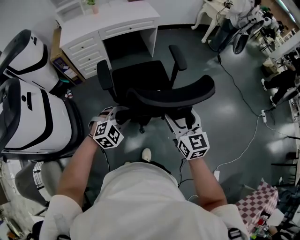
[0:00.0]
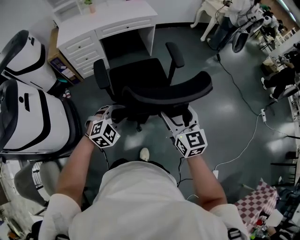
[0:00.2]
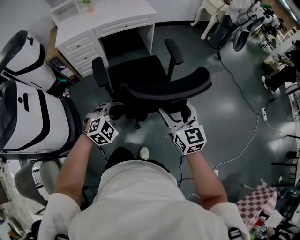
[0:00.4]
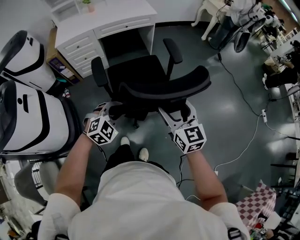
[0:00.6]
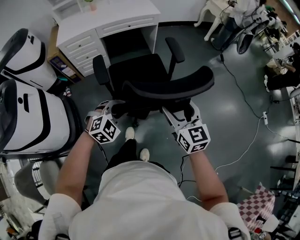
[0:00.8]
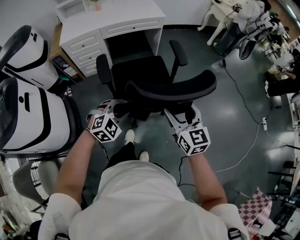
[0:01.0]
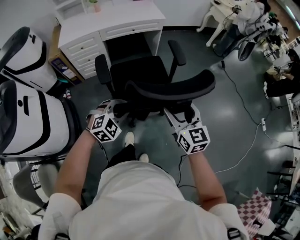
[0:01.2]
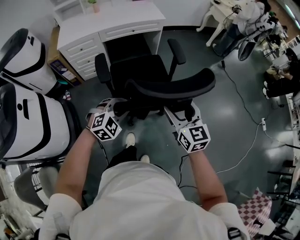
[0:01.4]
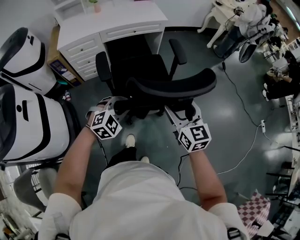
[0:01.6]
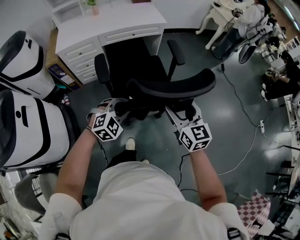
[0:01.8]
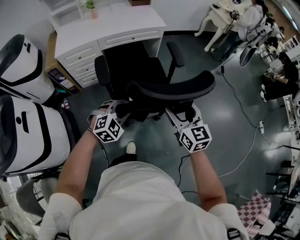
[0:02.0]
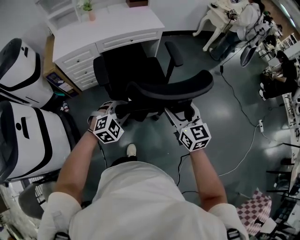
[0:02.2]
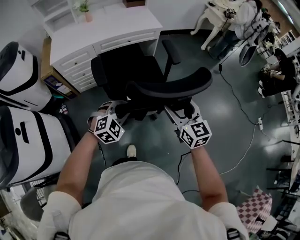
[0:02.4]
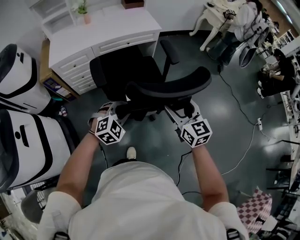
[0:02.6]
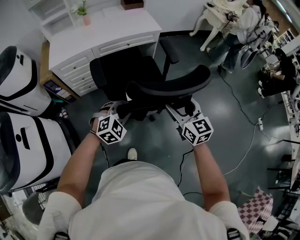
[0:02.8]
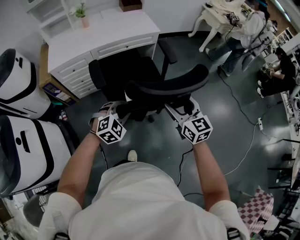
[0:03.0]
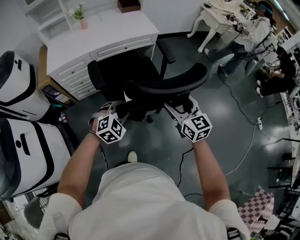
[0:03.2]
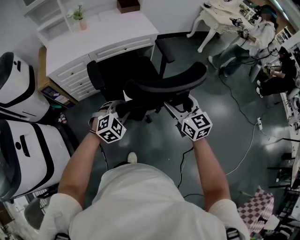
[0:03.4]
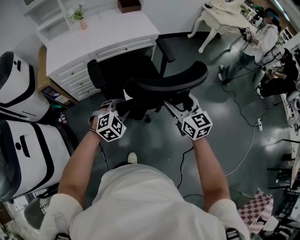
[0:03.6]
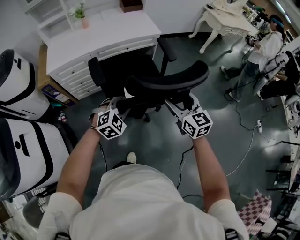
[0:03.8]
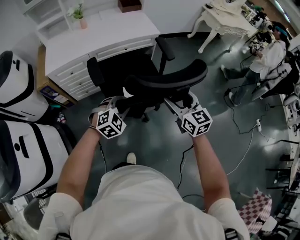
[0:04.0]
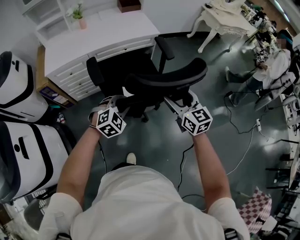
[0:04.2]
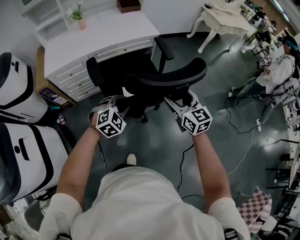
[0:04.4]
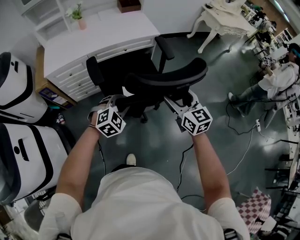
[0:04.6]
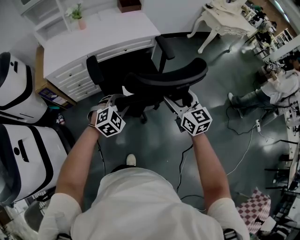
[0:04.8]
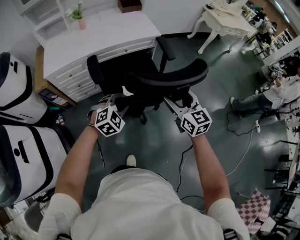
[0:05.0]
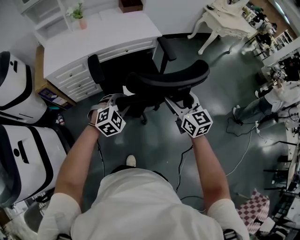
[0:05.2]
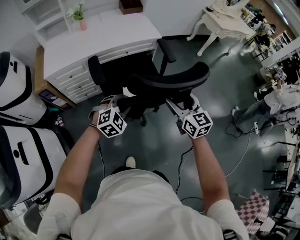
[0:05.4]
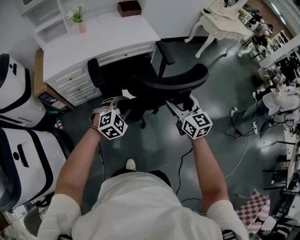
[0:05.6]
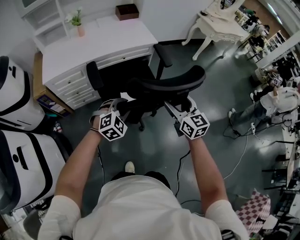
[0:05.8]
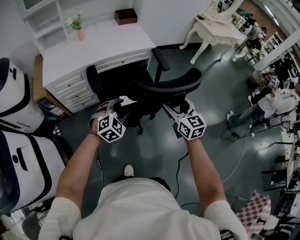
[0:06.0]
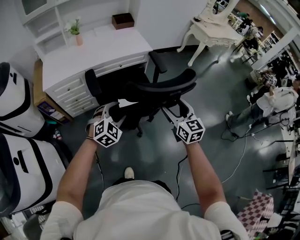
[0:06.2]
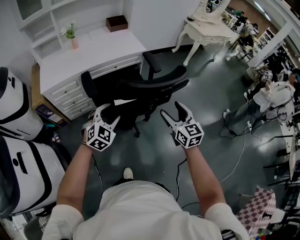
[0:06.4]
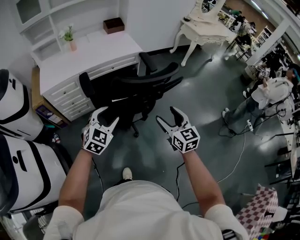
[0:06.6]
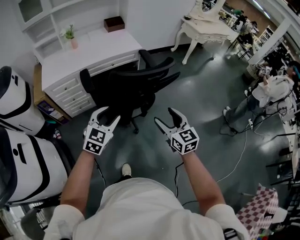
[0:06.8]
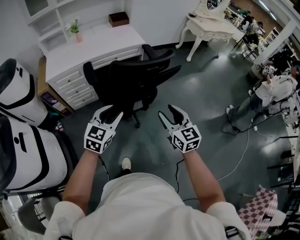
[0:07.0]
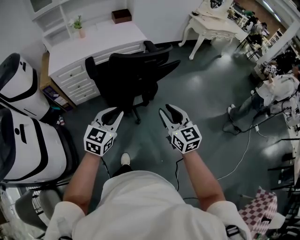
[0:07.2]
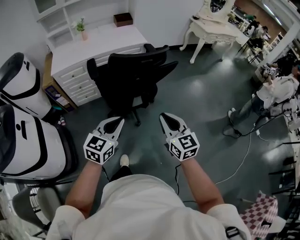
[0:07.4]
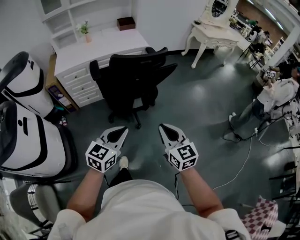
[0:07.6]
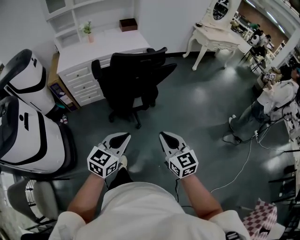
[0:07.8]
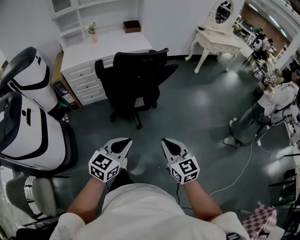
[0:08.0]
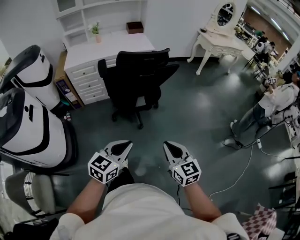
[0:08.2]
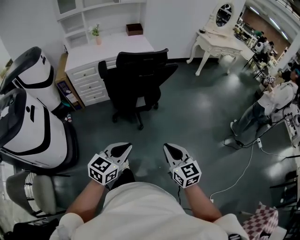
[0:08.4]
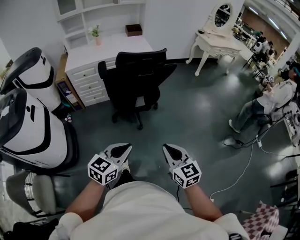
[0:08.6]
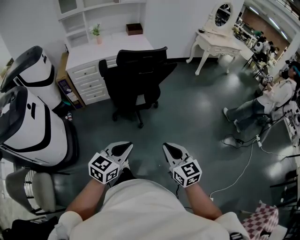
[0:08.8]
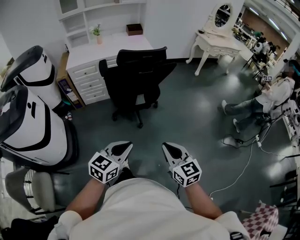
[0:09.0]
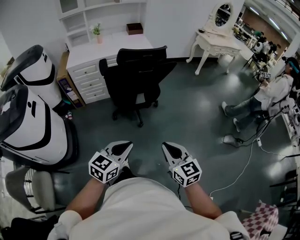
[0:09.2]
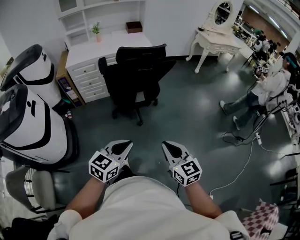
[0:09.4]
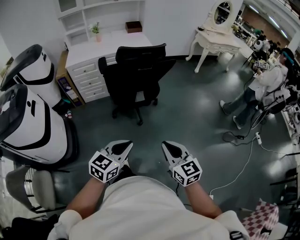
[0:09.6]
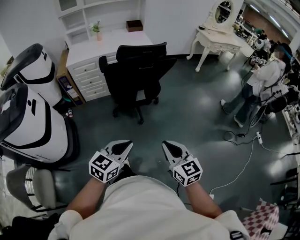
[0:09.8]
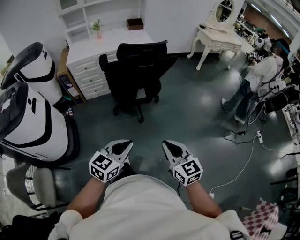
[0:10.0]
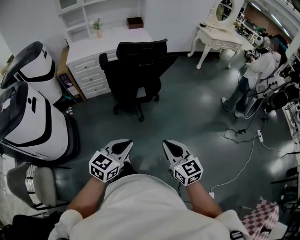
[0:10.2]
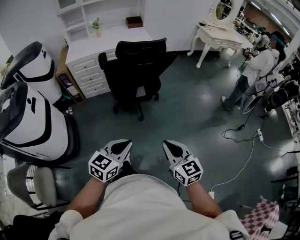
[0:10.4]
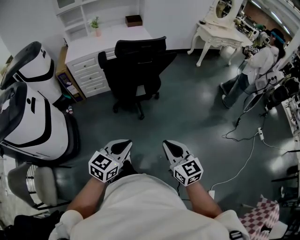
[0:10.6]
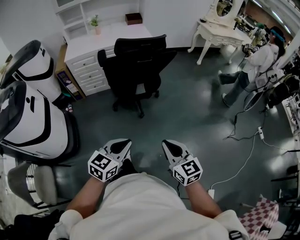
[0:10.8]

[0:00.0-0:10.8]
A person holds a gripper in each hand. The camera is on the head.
0:00.0 to 0:01.6: The grippers both shift forward by about 15 cm.
0:01.6 to 0:03.0: The two grippers go some 15 cm forward.
0:03.0 to 0:04.6: The two grippers go approximately 10 cm forward.
0:04.6 to 0:06.2: The left gripper opens up.
0:06.2 to 0:07.8: The right gripper travels backward by approximately 35 cm, and closes. Meanwhile the left gripper shifts about 35 cm backward and to the right, twists approximately 40 degrees counterclockwise, seen from behind, and closes its fingers.
0:07.8 to 0:09.2: Both grippers move backward, approximately 10 cm.
0:09.2 to 0:10.8: The grippers stay close to where they were, moving slightly.

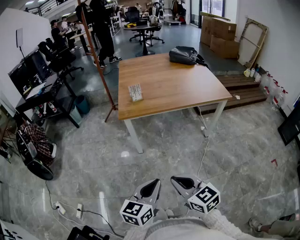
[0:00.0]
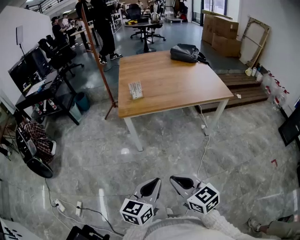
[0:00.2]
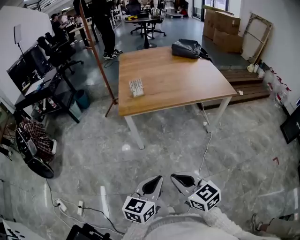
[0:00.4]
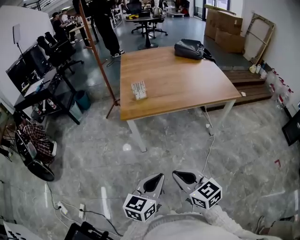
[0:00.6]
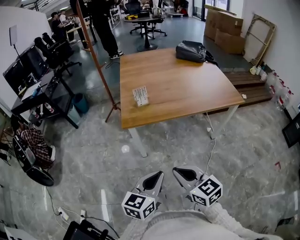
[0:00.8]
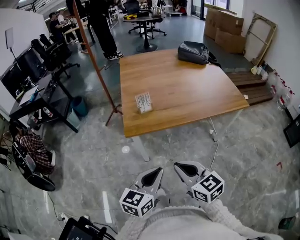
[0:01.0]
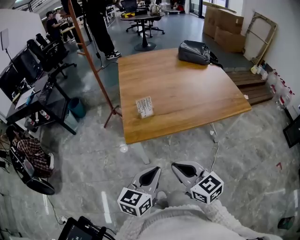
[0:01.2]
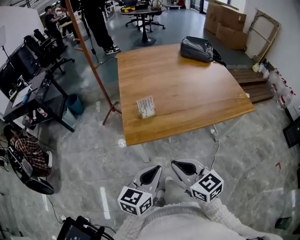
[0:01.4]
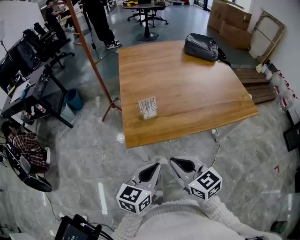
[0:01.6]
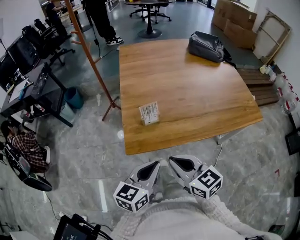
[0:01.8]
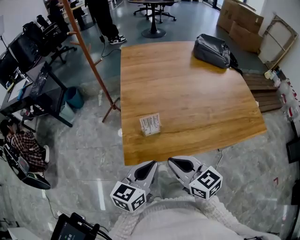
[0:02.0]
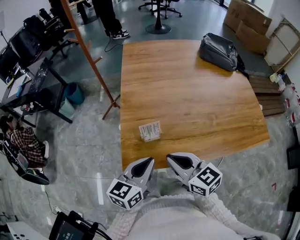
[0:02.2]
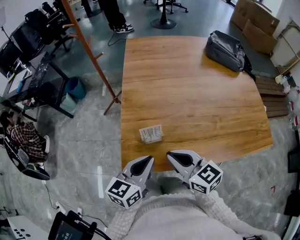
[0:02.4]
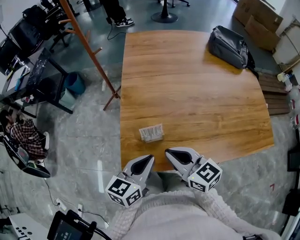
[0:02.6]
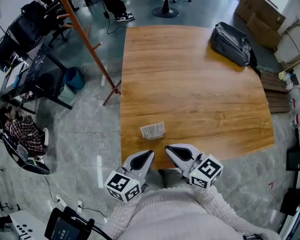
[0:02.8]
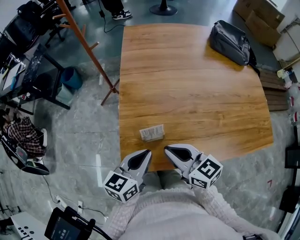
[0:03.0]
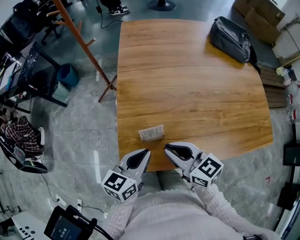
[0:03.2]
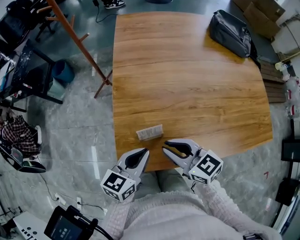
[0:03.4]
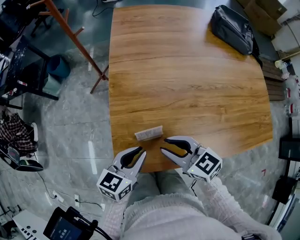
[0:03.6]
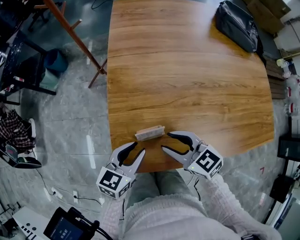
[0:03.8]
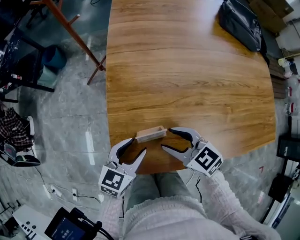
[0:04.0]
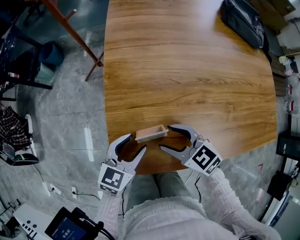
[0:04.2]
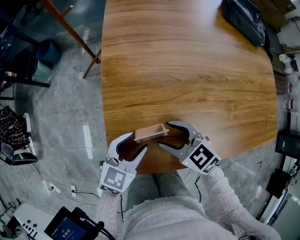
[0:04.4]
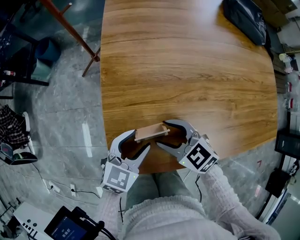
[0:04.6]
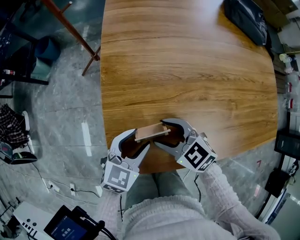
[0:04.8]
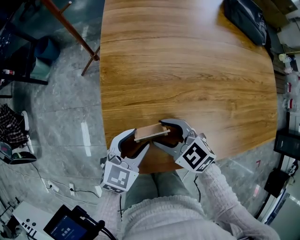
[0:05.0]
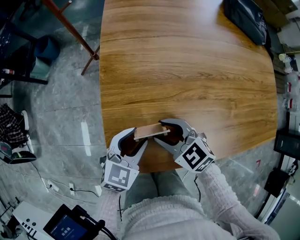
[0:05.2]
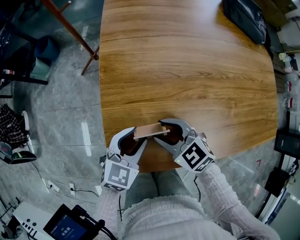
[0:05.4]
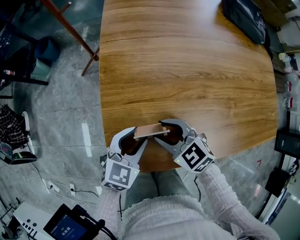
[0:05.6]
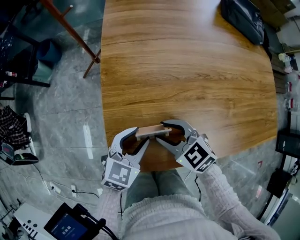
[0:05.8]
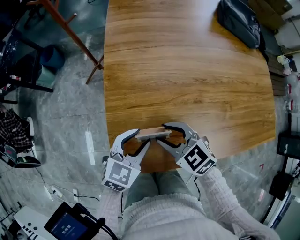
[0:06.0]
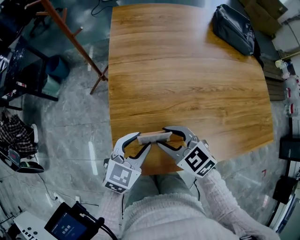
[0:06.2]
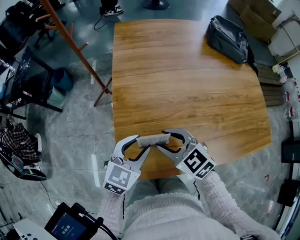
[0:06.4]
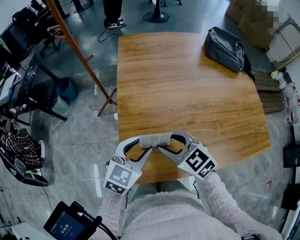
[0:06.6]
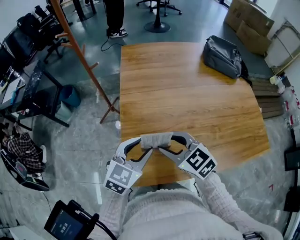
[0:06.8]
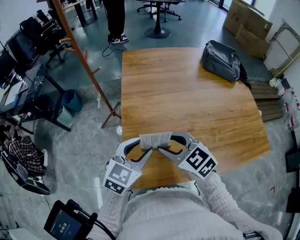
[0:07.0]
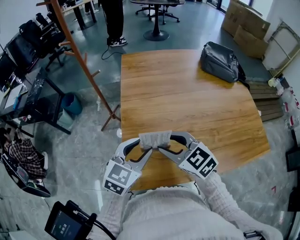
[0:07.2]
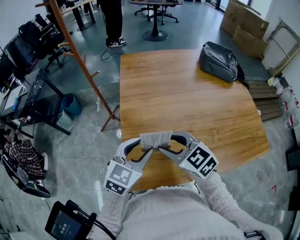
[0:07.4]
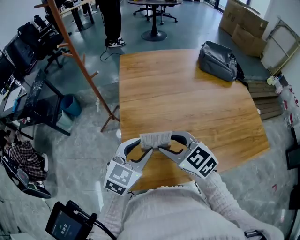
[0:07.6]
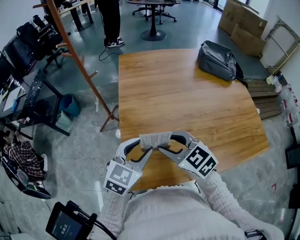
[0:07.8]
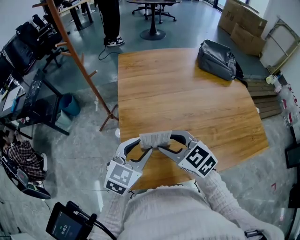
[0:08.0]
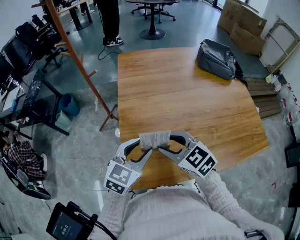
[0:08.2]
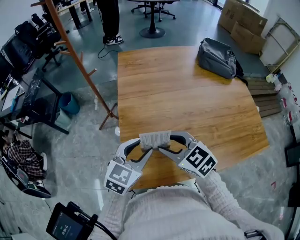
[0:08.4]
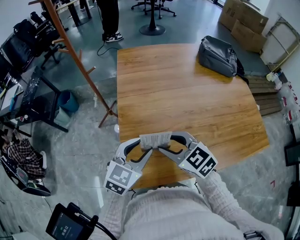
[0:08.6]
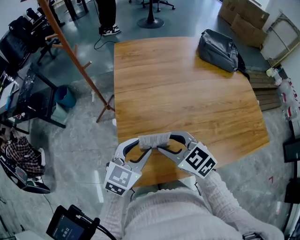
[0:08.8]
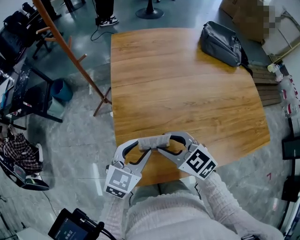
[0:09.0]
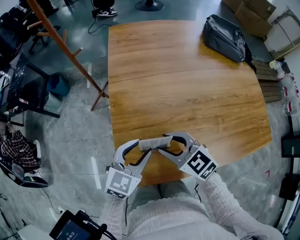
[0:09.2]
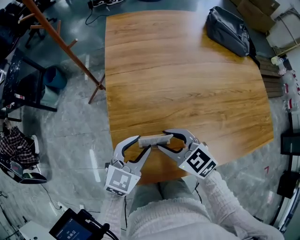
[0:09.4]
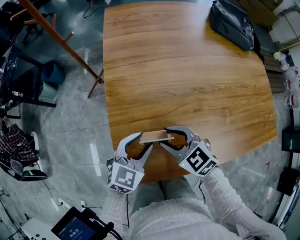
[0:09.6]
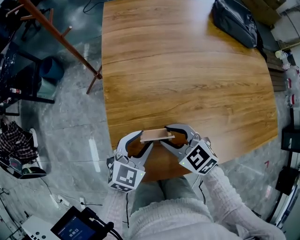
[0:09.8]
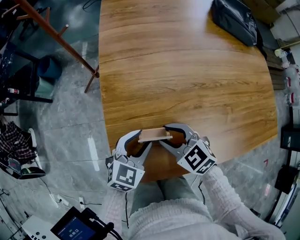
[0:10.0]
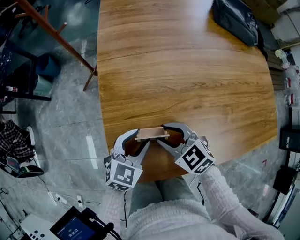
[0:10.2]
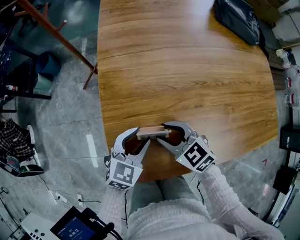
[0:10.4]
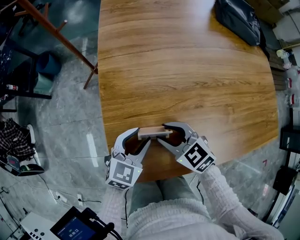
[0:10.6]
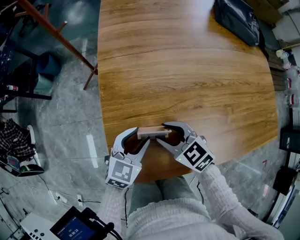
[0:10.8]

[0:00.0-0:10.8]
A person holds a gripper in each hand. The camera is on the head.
0:00.0 to 0:01.6: The grippers both shift forward by some 40 cm.
0:01.6 to 0:03.0: Both grippers travel together forward, roughly 25 cm.
0:03.0 to 0:04.6: The grippers both shift downward and forward by some 15 cm. The right gripper swivels roughly 30 degrees, and opens. Meanwhile the left gripper rotates some 30 degrees, and opens its fingers.
0:04.6 to 0:06.2: Both grippers travel together upward, about 5 cm.
0:06.2 to 0:07.8: Both grippers move upward, some 10 cm.
0:07.8 to 0:09.2: The grippers both shift downward by roughly 10 cm.
0:09.2 to 0:10.8: Both grippers travel together downward, about 10 cm.

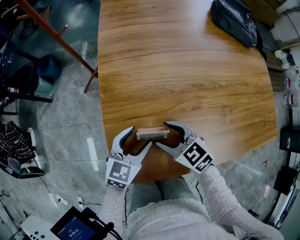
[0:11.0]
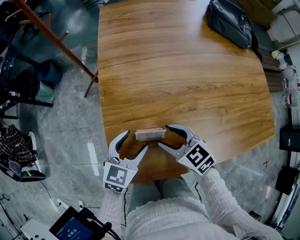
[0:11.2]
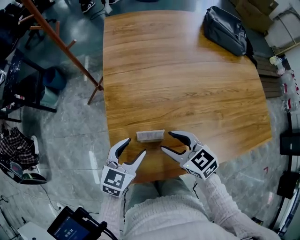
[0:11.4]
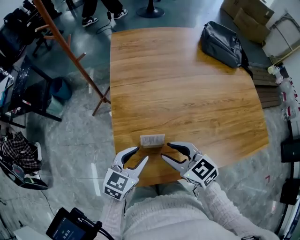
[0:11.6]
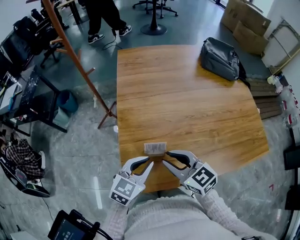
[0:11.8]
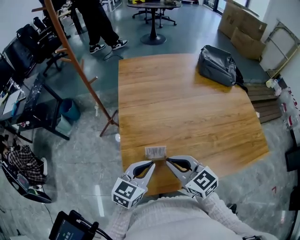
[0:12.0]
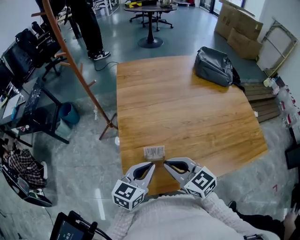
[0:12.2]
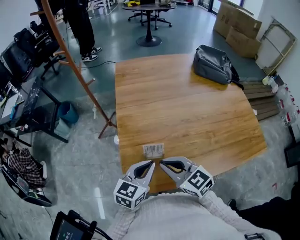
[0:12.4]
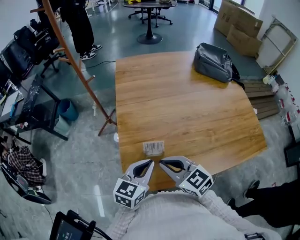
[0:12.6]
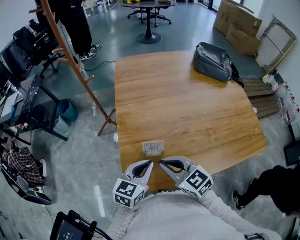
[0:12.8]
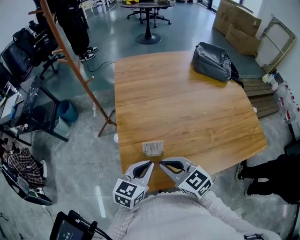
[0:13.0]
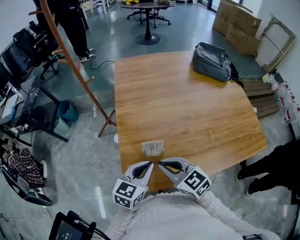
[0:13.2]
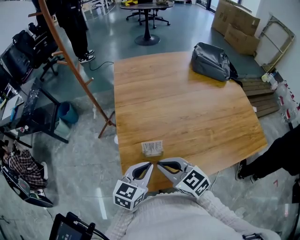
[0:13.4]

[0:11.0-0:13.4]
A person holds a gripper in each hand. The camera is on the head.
0:11.0 to 0:12.2: The grippers both shift upward and backward by roughly 15 cm. The left gripper closes its fingers. The right gripper closes up.
0:12.2 to 0:13.4: The grippers make only small movements.
